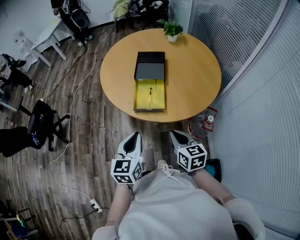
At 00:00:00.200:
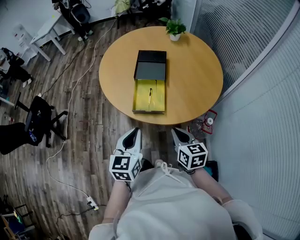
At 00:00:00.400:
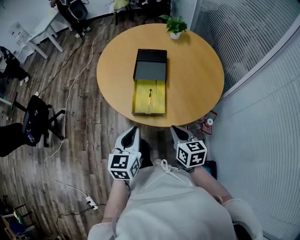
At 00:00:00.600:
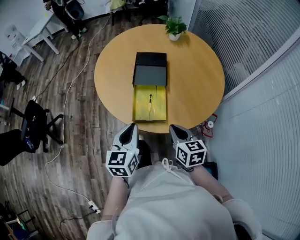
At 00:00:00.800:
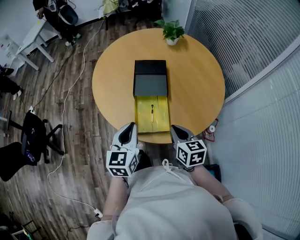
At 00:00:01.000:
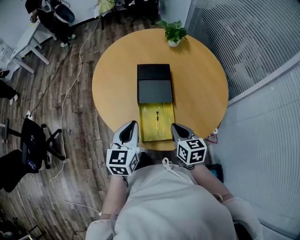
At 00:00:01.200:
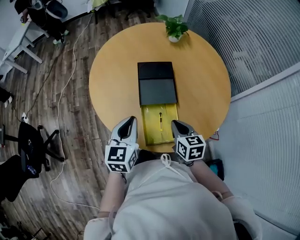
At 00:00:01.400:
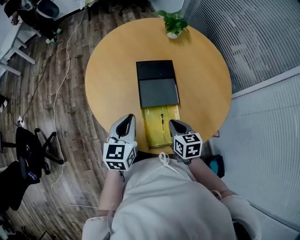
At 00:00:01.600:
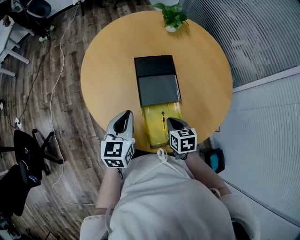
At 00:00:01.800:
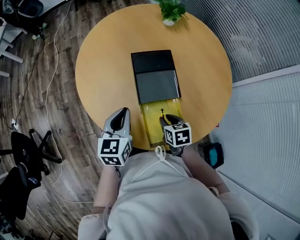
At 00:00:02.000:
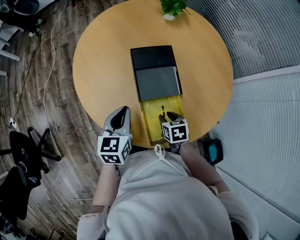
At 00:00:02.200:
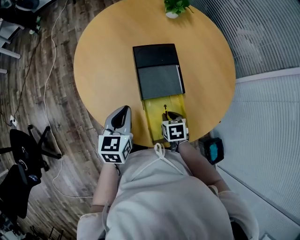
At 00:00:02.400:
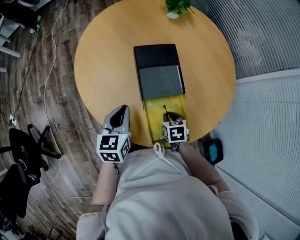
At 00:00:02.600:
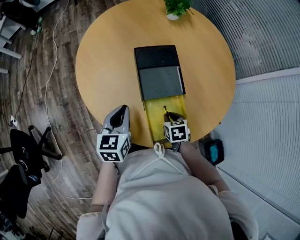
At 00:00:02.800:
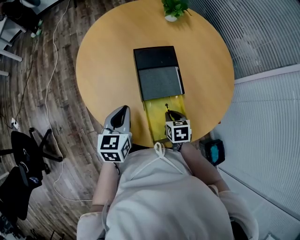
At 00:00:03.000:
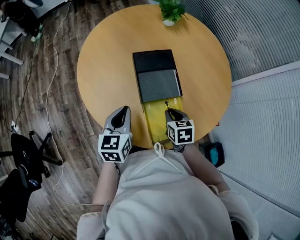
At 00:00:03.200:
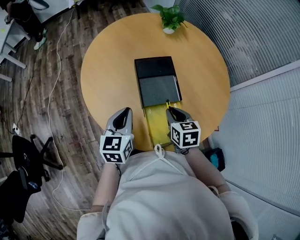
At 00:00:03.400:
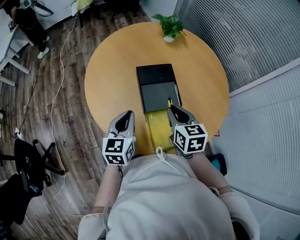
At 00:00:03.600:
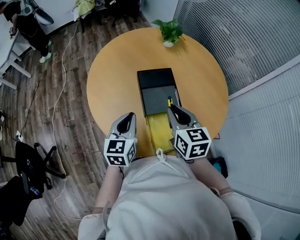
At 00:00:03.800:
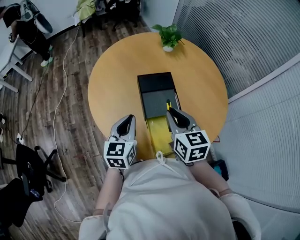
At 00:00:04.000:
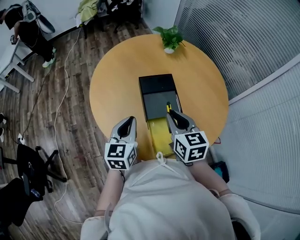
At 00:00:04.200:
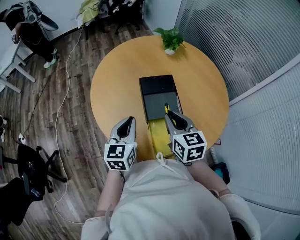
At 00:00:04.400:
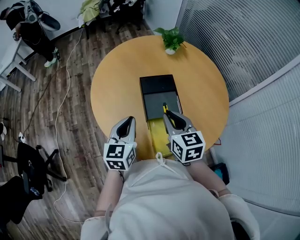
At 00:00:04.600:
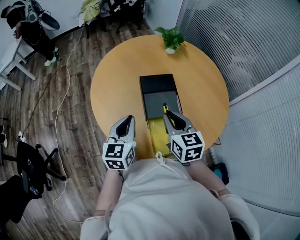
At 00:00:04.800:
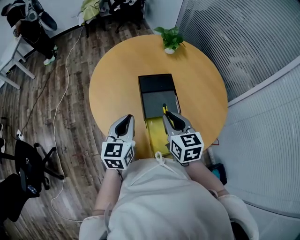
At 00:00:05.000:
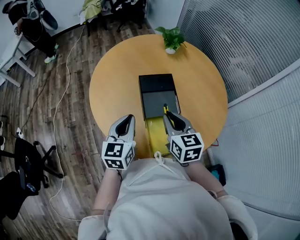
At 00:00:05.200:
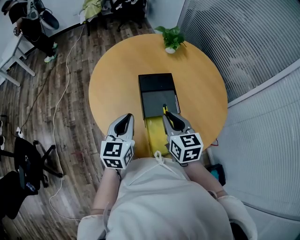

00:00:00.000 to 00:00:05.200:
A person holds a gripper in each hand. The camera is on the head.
00:00:00.000 to 00:00:01.800: The right gripper shifts roughly 40 cm forward and downward, rotates roughly 30 degrees, and opens up; the left gripper moves forward, roughly 40 cm.
00:00:01.800 to 00:00:03.400: The right gripper goes approximately 15 cm upward, and changes its angle by about 20 degrees.

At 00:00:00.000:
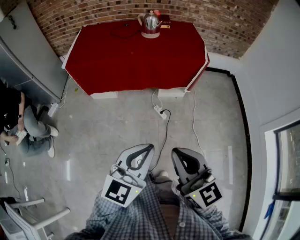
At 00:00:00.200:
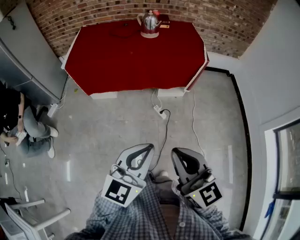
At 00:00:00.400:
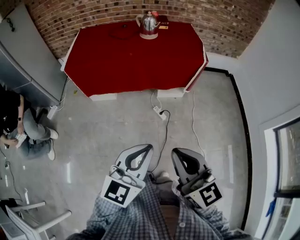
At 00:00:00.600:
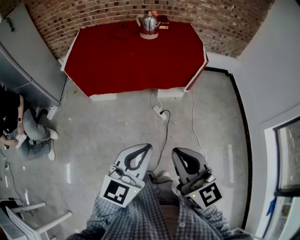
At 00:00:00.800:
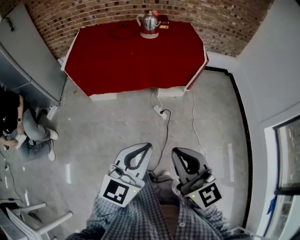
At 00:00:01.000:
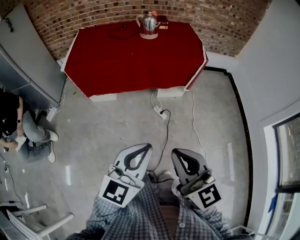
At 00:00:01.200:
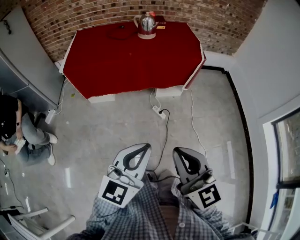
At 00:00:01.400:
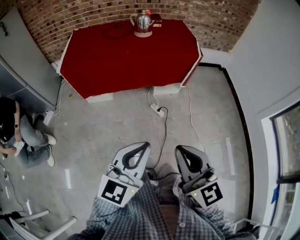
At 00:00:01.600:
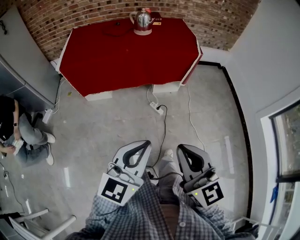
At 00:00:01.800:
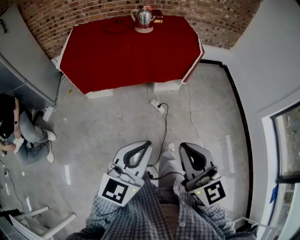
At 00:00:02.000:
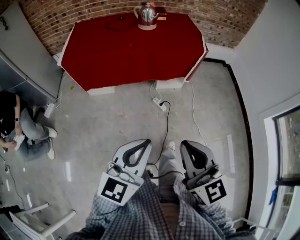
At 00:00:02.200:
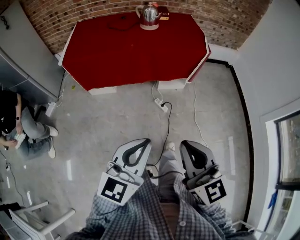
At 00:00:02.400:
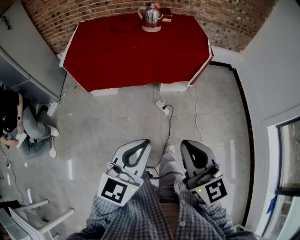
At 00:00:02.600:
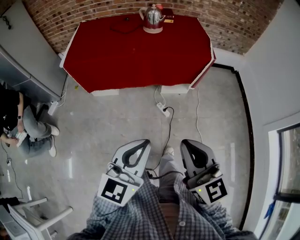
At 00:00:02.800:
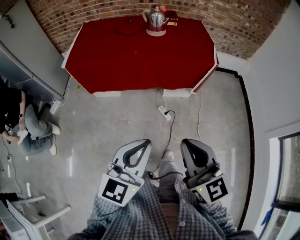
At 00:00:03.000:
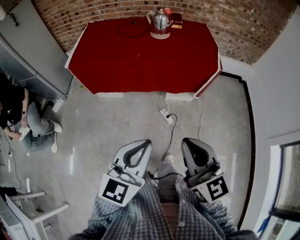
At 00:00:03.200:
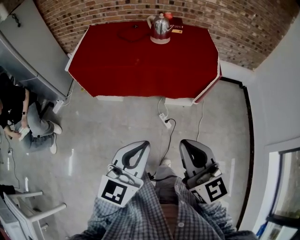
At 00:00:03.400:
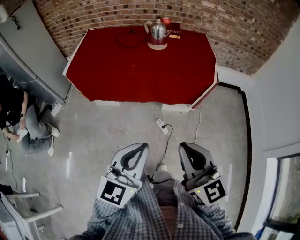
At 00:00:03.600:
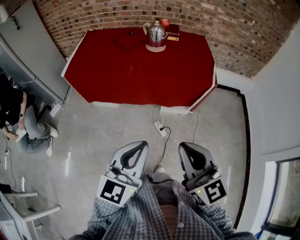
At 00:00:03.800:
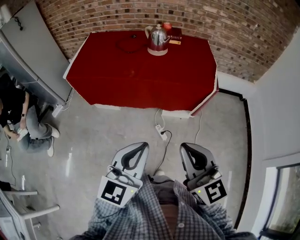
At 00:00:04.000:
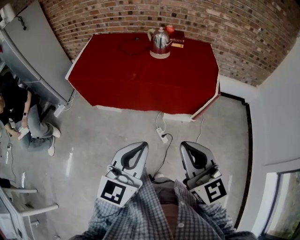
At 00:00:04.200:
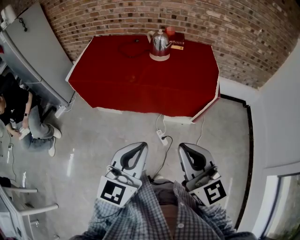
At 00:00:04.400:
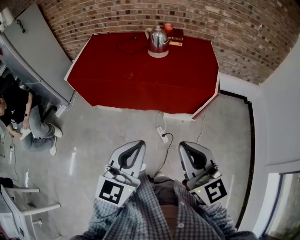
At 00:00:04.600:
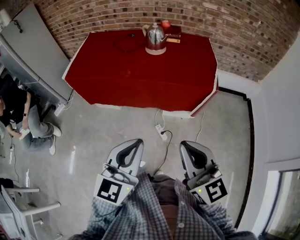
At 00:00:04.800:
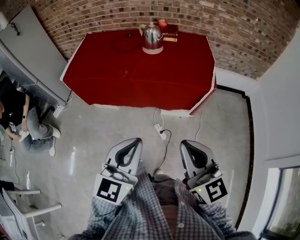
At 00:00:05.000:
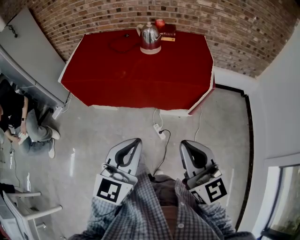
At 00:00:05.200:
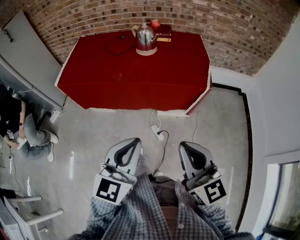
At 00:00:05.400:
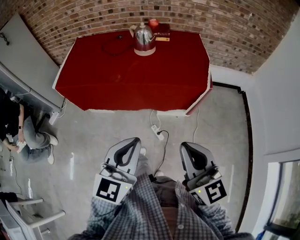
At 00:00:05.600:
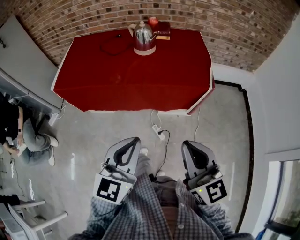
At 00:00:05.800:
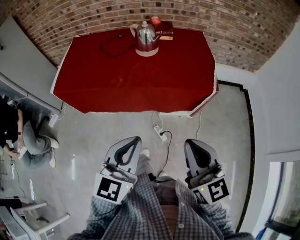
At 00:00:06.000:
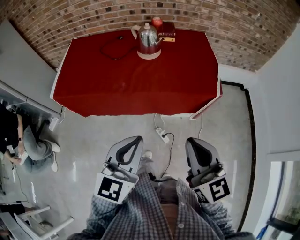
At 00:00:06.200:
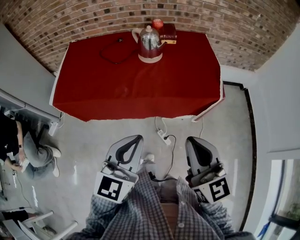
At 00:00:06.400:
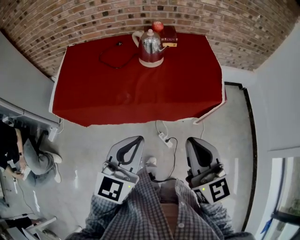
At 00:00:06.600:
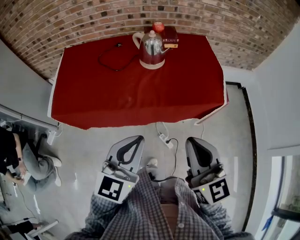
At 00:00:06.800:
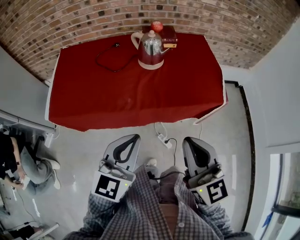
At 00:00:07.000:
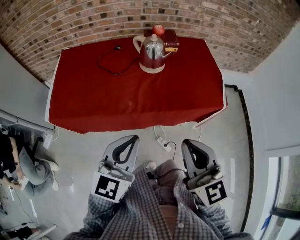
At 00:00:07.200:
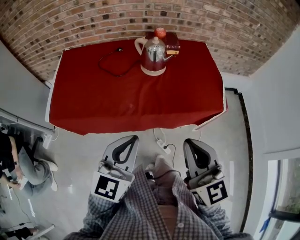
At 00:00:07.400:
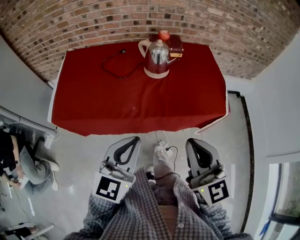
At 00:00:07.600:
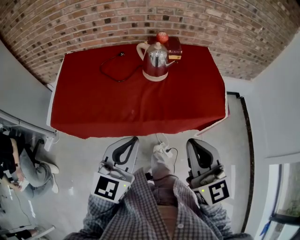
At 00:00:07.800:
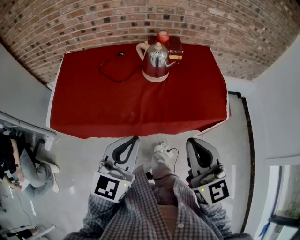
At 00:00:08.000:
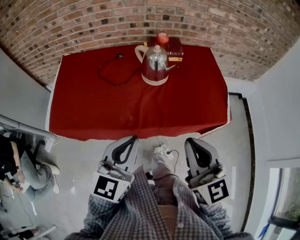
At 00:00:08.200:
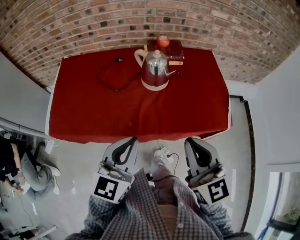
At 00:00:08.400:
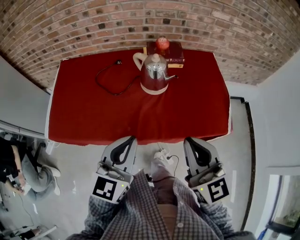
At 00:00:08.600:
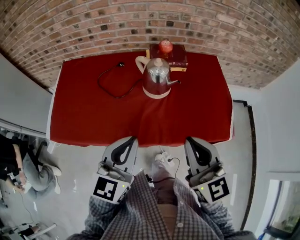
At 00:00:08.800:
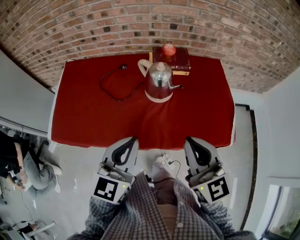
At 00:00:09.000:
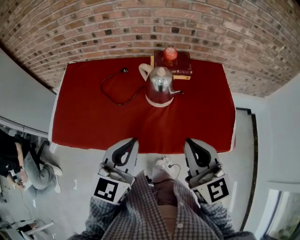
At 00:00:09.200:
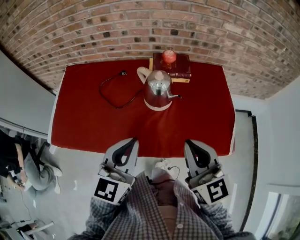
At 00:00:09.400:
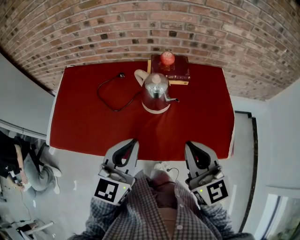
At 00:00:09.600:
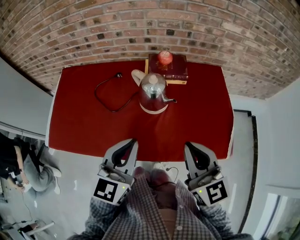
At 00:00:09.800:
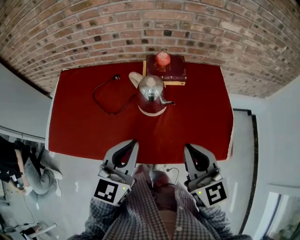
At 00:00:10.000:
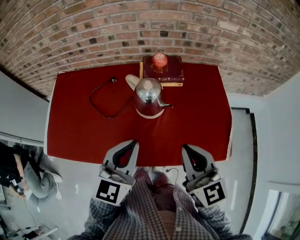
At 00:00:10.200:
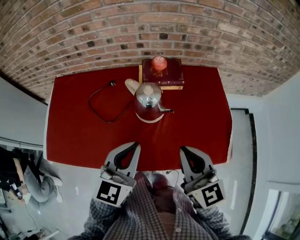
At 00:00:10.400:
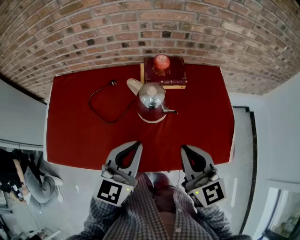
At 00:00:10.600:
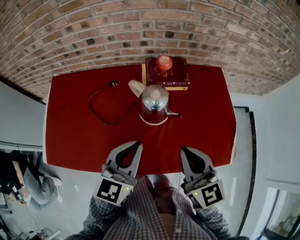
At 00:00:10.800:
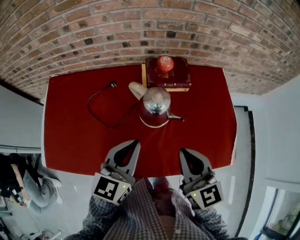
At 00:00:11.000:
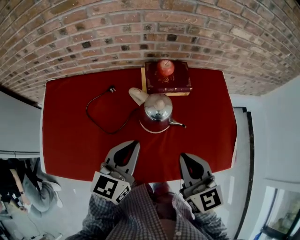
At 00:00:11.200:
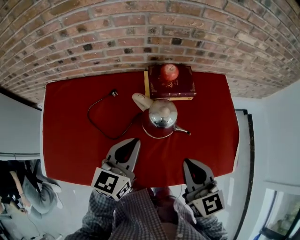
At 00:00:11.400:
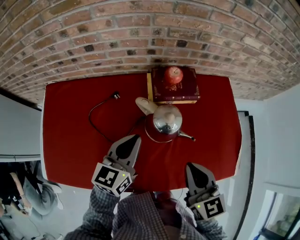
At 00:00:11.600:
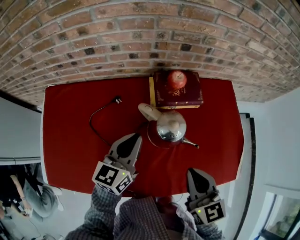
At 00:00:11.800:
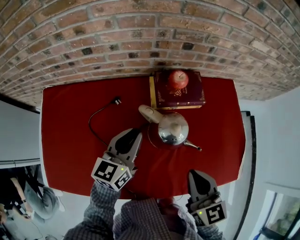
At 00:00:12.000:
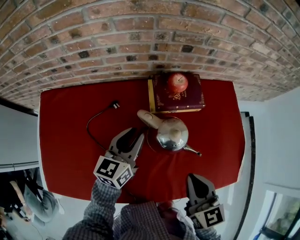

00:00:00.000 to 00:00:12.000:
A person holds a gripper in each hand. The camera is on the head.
00:00:00.000 to 00:00:01.600: The left gripper moves to the left, approximately 5 cm.
00:00:01.600 to 00:00:03.000: The two grippers go some 15 cm forward.
00:00:03.000 to 00:00:04.400: Both grippers move forward and to the right, roughly 15 cm.
00:00:04.400 to 00:00:06.000: Both grippers travel together forward, some 15 cm.
00:00:06.000 to 00:00:07.600: Both grippers move forward and to the left, approximately 15 cm.
00:00:07.600 to 00:00:09.000: Both grippers travel together forward, approximately 15 cm.
00:00:09.000 to 00:00:10.400: Both grippers move forward, some 10 cm.
00:00:10.400 to 00:00:12.000: The right gripper goes about 10 cm downward and forward. Meanwhile the left gripper travels forward, downward and to the left by approximately 25 cm, and opens up.

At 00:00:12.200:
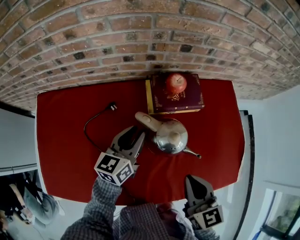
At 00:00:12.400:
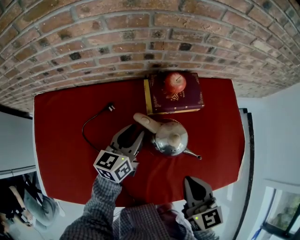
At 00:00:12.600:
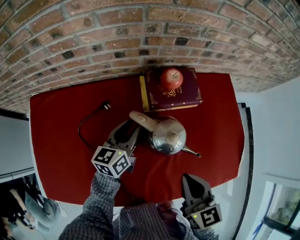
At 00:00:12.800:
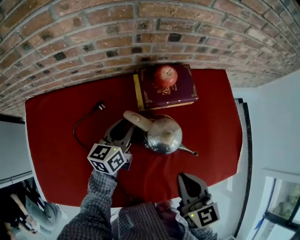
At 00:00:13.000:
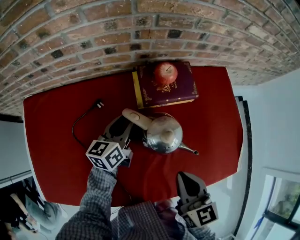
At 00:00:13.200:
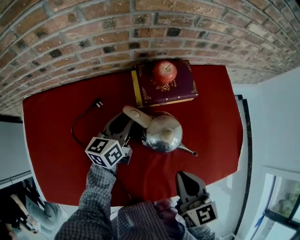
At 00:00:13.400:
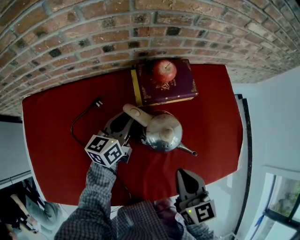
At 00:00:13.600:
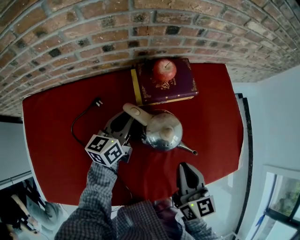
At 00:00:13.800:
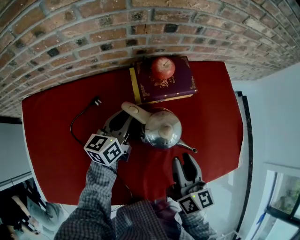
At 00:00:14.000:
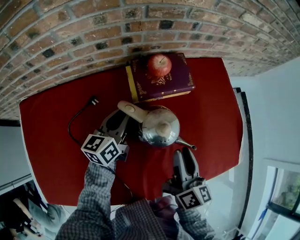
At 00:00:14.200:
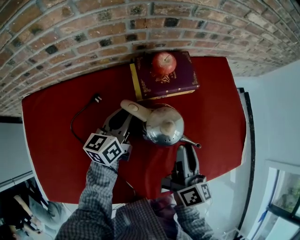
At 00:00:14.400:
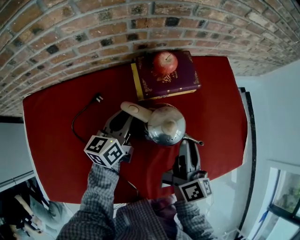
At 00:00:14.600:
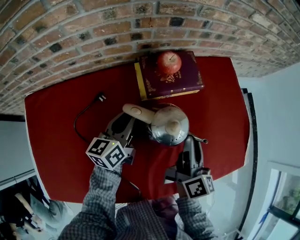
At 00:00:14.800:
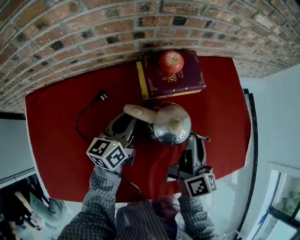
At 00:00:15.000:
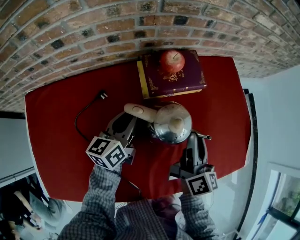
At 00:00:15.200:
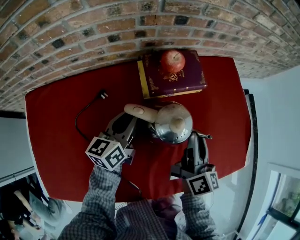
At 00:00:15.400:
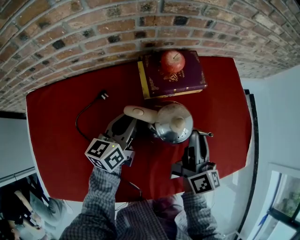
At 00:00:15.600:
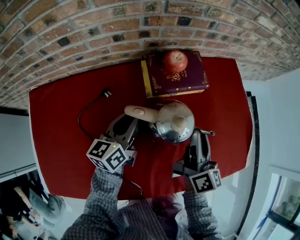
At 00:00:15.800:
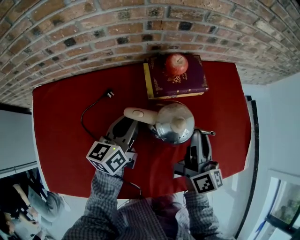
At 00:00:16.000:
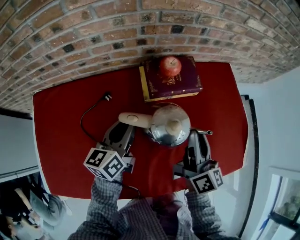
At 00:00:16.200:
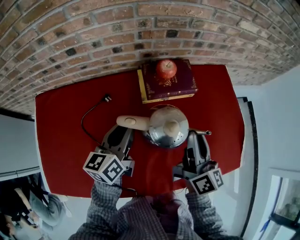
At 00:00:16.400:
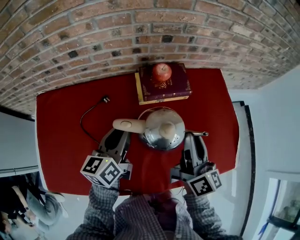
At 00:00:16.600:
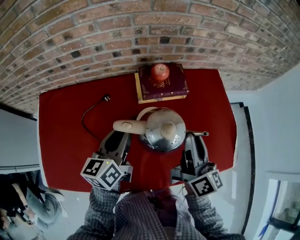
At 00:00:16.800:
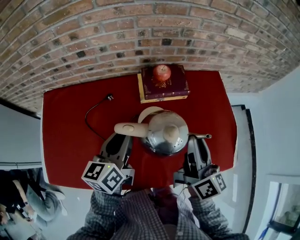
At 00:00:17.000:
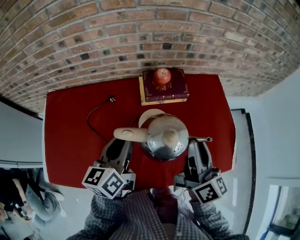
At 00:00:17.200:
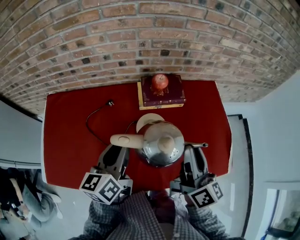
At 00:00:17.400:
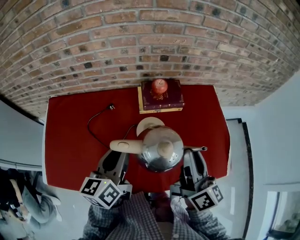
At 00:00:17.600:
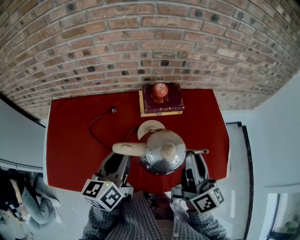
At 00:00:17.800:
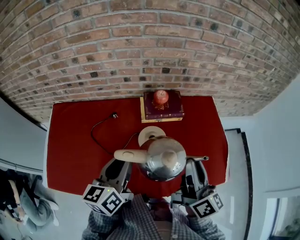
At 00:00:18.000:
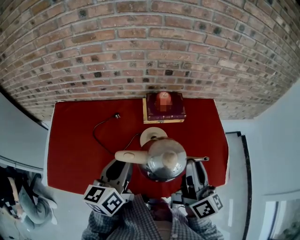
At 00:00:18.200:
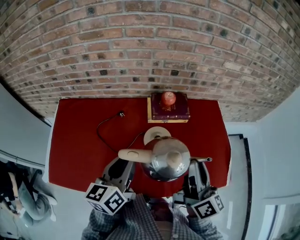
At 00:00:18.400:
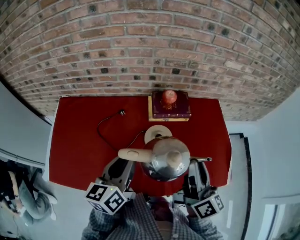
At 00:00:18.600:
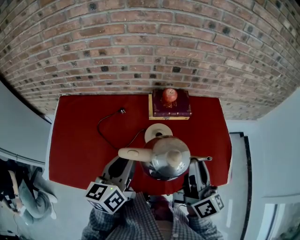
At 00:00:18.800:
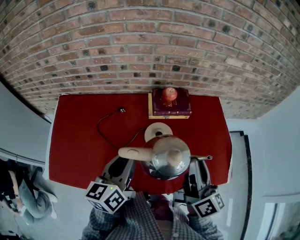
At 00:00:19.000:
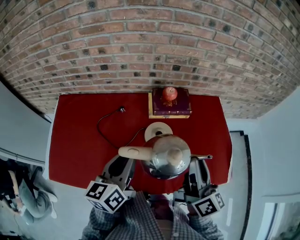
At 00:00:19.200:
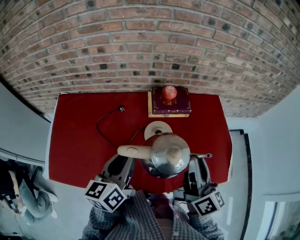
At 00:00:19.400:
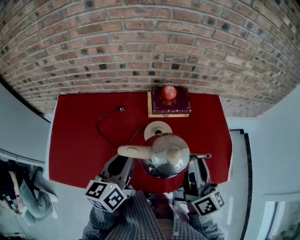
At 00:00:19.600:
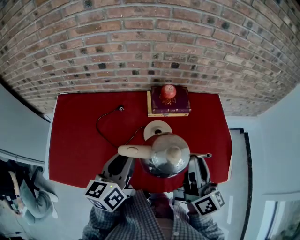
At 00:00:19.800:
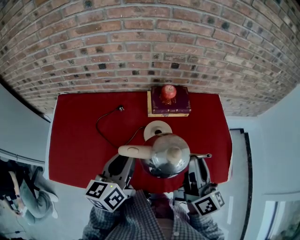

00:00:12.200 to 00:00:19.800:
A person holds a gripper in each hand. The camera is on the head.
00:00:12.200 to 00:00:13.800: The grippers both shift downward by about 5 cm. The right gripper changes its angle by about 30 degrees, and opens up.
00:00:13.800 to 00:00:15.200: The right gripper goes approximately 5 cm forward.
00:00:15.200 to 00:00:16.800: The right gripper travels upward by about 15 cm. Meanwhile the left gripper is displaced upward and backward by about 15 cm.
00:00:16.800 to 00:00:18.200: The right gripper is displaced upward and backward by about 10 cm. Meanwhile the left gripper shifts some 10 cm backward and upward.
00:00:18.200 to 00:00:19.800: The two grippers keep their place.
